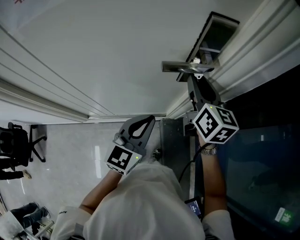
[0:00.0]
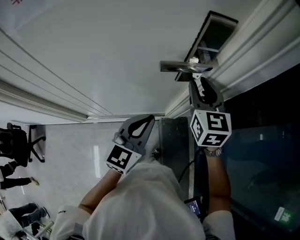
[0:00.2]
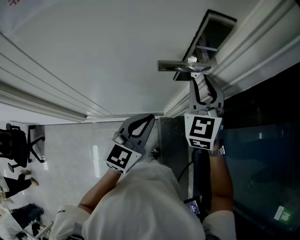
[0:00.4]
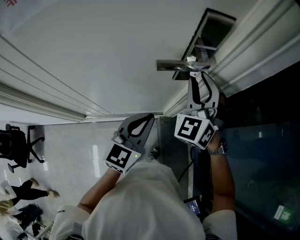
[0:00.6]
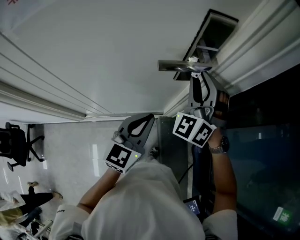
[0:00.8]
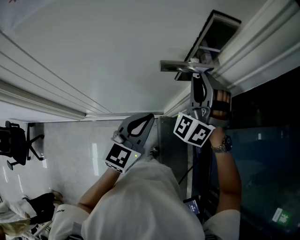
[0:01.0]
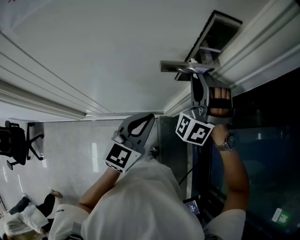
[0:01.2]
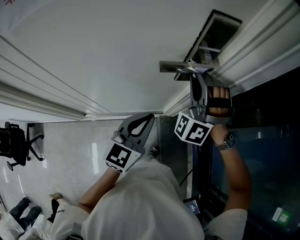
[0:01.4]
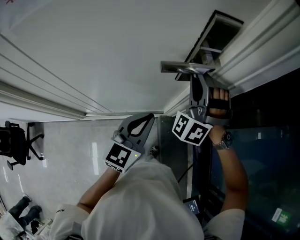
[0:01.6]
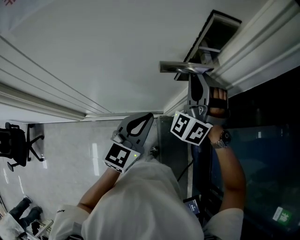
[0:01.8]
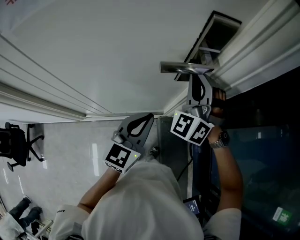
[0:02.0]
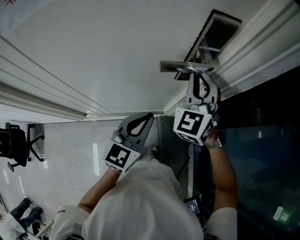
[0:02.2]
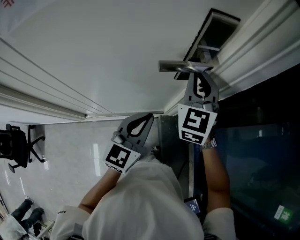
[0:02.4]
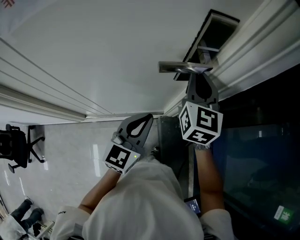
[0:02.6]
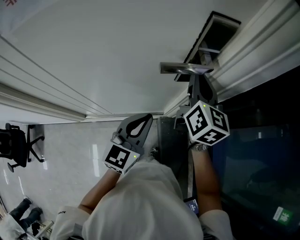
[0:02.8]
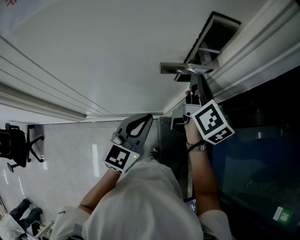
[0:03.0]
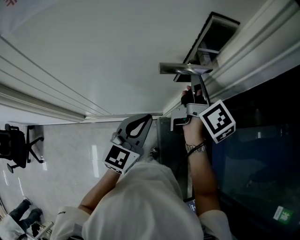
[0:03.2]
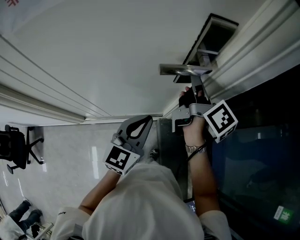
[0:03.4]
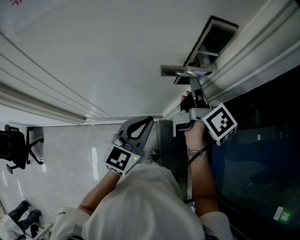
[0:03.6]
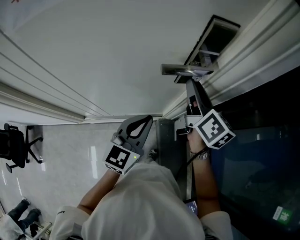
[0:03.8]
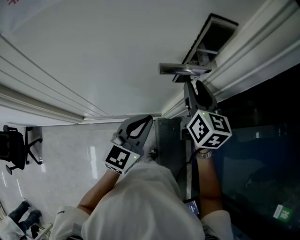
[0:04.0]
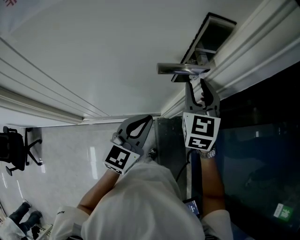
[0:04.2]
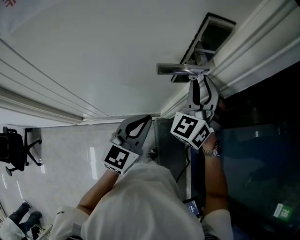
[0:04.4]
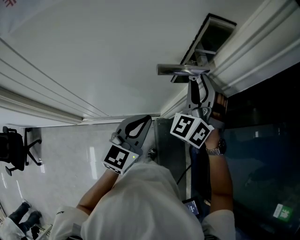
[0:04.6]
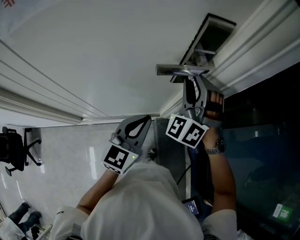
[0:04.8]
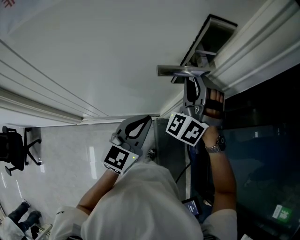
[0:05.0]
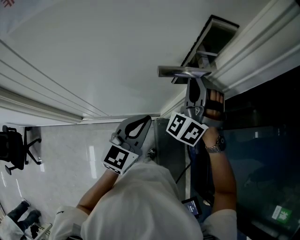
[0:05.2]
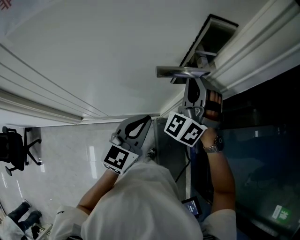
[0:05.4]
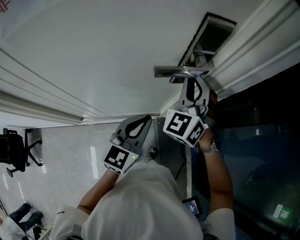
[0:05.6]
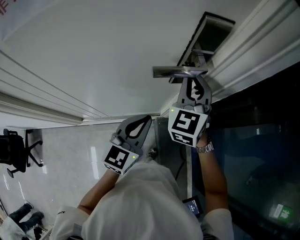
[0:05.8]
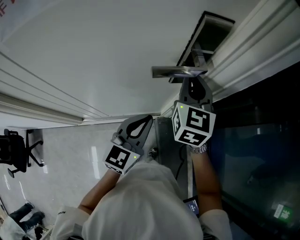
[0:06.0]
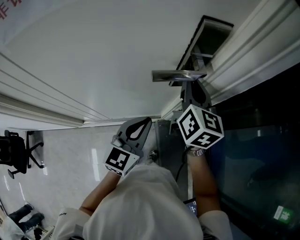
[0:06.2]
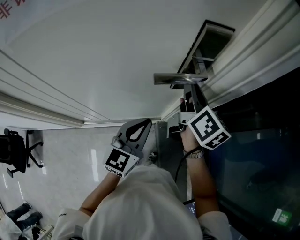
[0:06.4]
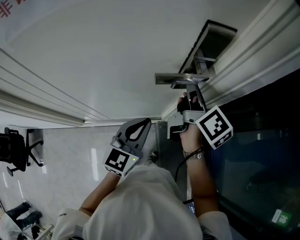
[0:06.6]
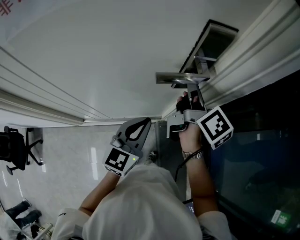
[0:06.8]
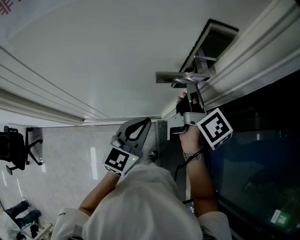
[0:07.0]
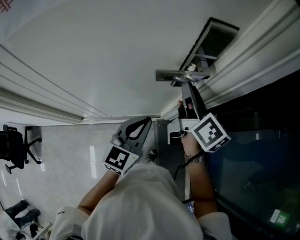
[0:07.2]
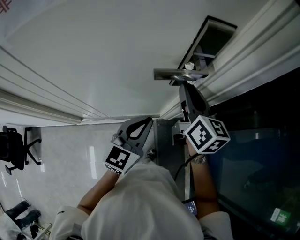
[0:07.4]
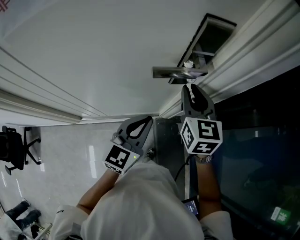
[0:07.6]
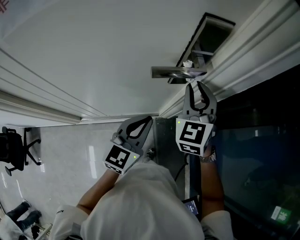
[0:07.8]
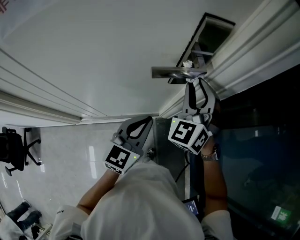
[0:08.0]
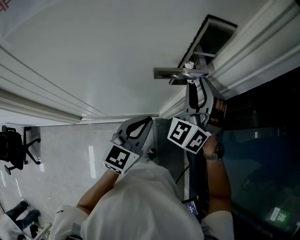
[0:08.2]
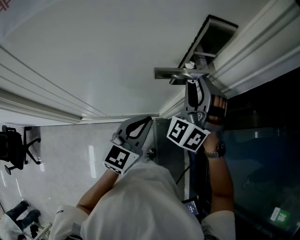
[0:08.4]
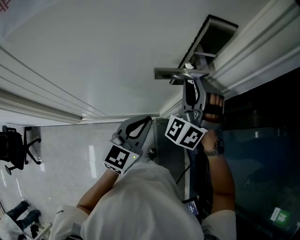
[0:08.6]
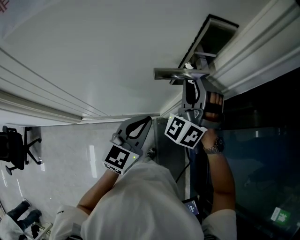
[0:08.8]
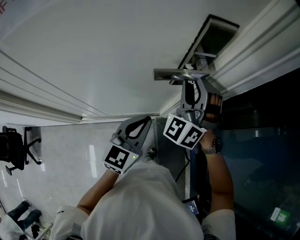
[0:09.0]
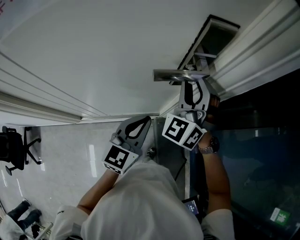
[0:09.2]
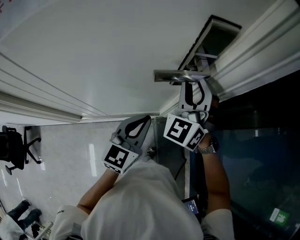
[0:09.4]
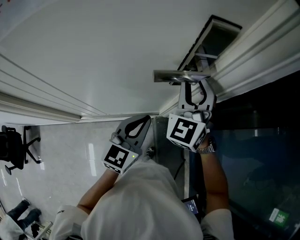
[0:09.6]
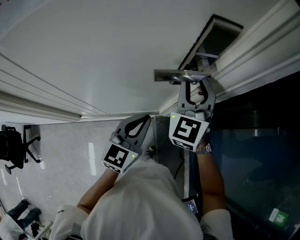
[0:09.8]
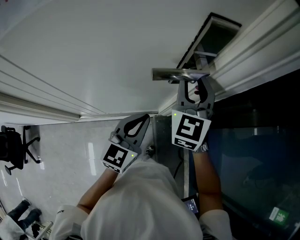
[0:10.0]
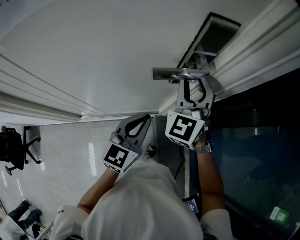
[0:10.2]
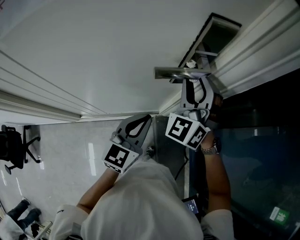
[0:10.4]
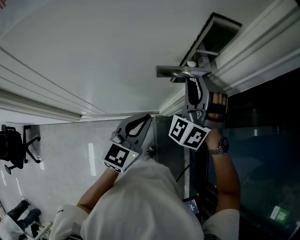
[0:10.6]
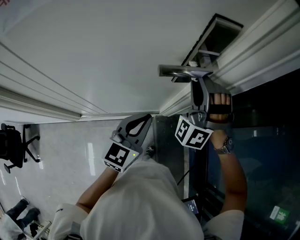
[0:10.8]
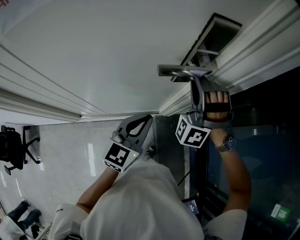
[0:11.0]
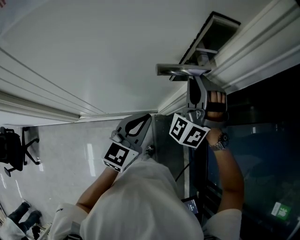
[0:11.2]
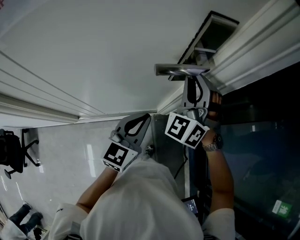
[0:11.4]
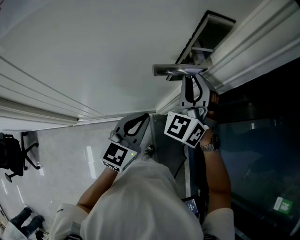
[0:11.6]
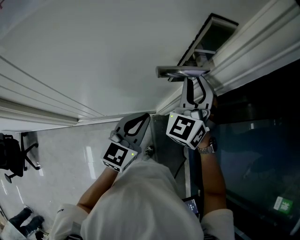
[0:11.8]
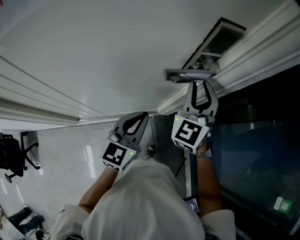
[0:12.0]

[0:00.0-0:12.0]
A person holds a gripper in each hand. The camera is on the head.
0:00.0 to 0:01.6: The right gripper rotates around the line of its fingers by approximately 100 degrees, counterclockwise from behind.
0:01.6 to 0:03.0: The right gripper twists roughly 120 degrees clockwise, seen from behind.
0:03.0 to 0:04.4: The right gripper twists roughly 90 degrees counterclockwise, seen from behind, and opens.
0:04.4 to 0:06.0: The right gripper rotates around the line of its fingers by some 50 degrees, clockwise from behind, and closes up.
0:07.6 to 0:09.0: The right gripper rolls counterclockwise, seen from behind, by roughly 60 degrees.
0:10.4 to 0:12.0: The right gripper changes its angle by roughly 20 degrees.

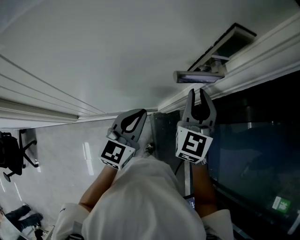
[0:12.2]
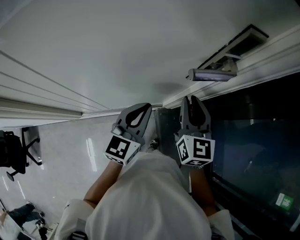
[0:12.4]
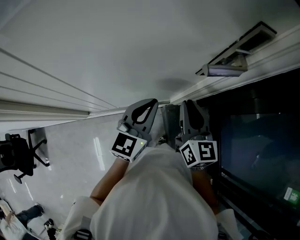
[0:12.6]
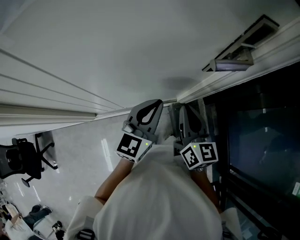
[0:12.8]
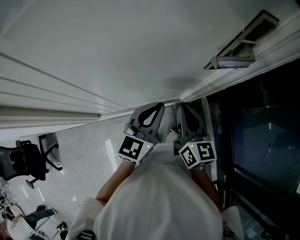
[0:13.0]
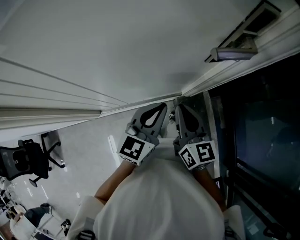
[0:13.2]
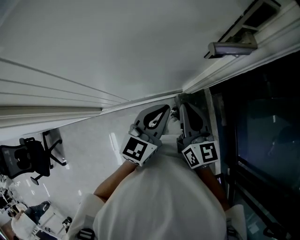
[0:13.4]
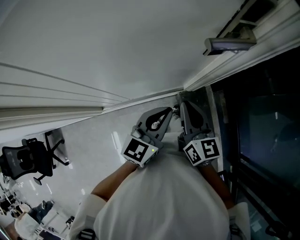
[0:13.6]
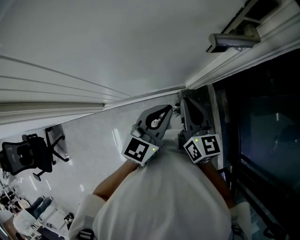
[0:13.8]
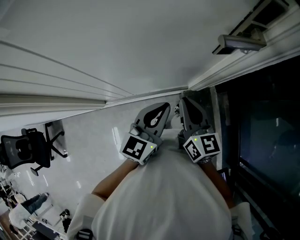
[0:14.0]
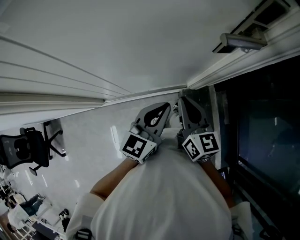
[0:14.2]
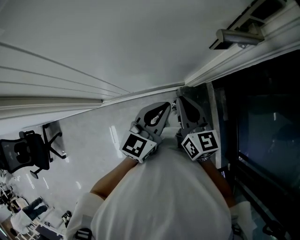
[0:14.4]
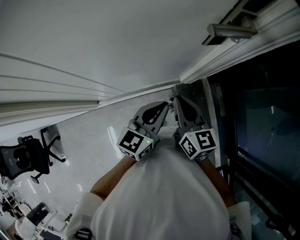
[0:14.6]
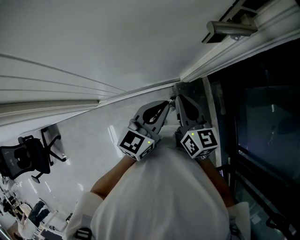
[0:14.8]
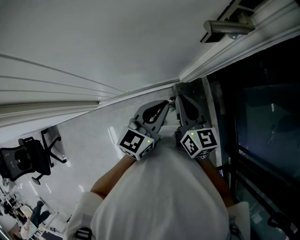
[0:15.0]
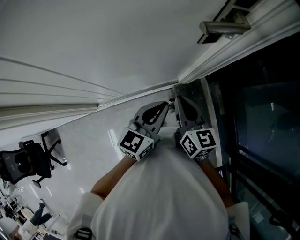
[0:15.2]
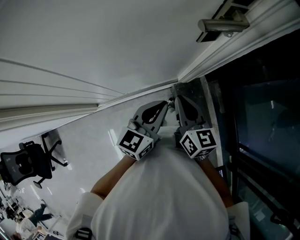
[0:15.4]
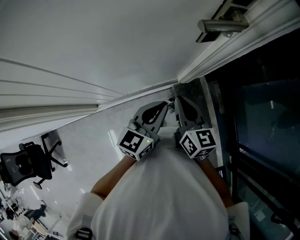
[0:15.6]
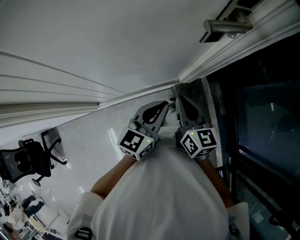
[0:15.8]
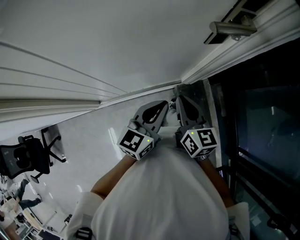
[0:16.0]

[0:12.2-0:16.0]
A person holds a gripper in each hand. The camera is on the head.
0:12.2 to 0:13.4: The right gripper is displaced backward, downward and to the left by approximately 20 cm, and rotates approximately 40 degrees. Meanwhile the left gripper moves about 5 cm.
0:13.4 to 0:14.8: There are only small adjustments of the grippers.
0:14.8 to 0:16.0: Neither gripper changes place.

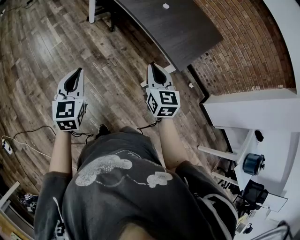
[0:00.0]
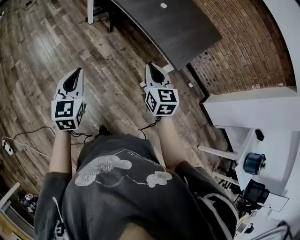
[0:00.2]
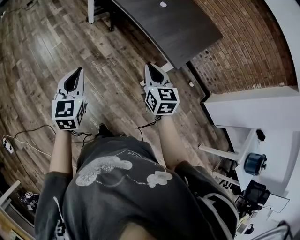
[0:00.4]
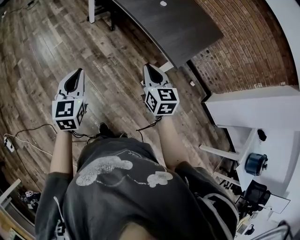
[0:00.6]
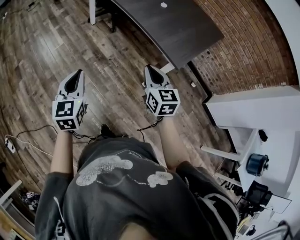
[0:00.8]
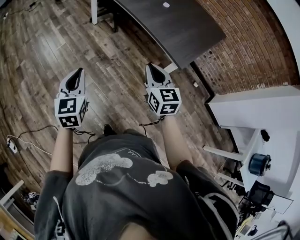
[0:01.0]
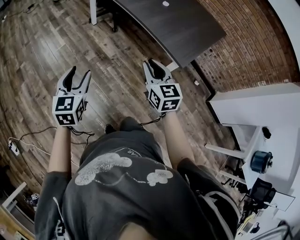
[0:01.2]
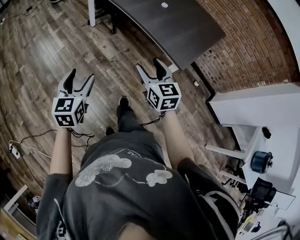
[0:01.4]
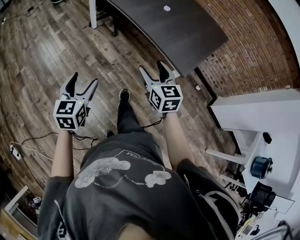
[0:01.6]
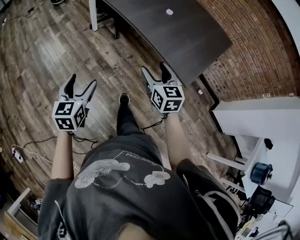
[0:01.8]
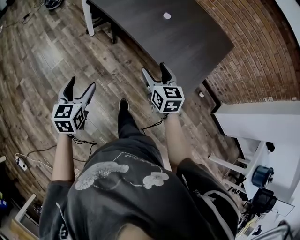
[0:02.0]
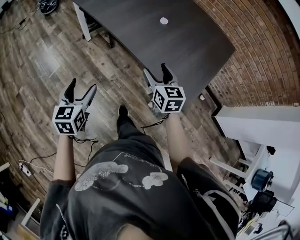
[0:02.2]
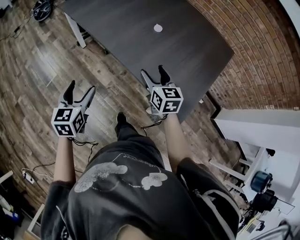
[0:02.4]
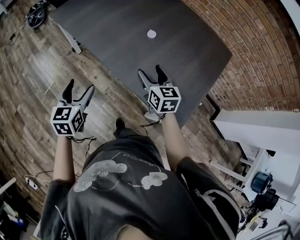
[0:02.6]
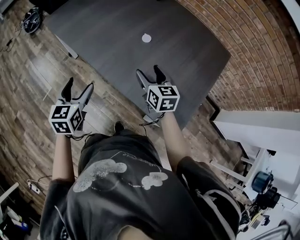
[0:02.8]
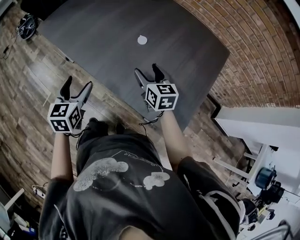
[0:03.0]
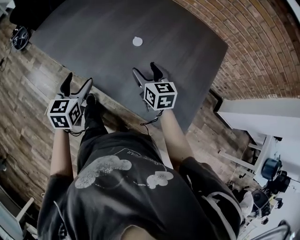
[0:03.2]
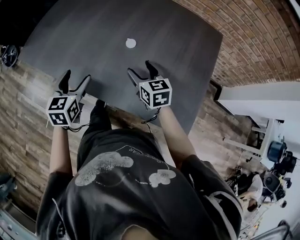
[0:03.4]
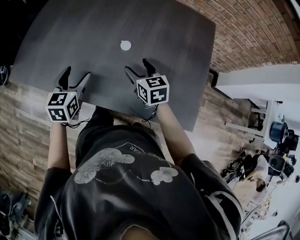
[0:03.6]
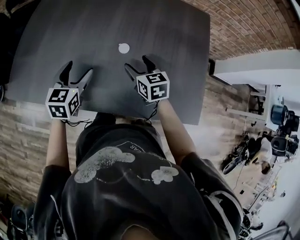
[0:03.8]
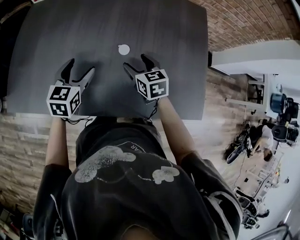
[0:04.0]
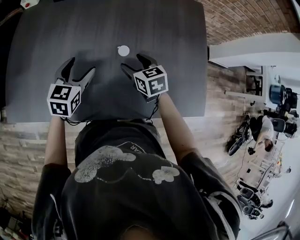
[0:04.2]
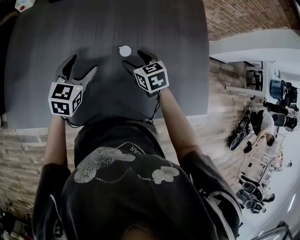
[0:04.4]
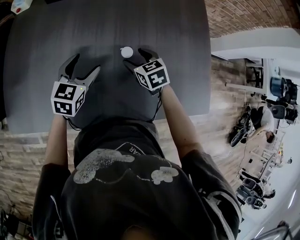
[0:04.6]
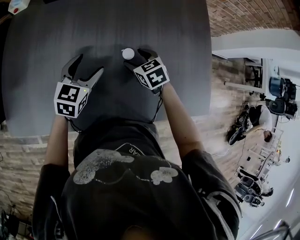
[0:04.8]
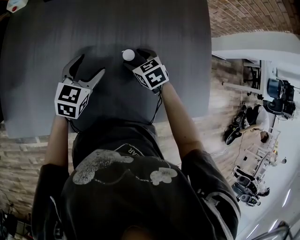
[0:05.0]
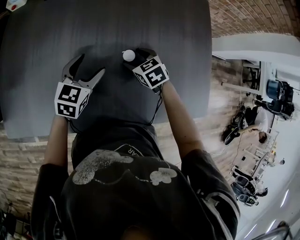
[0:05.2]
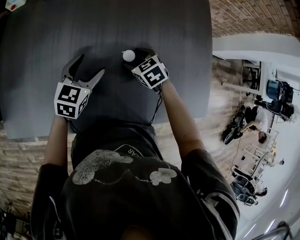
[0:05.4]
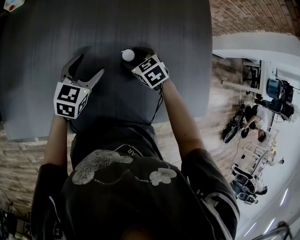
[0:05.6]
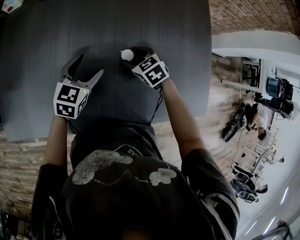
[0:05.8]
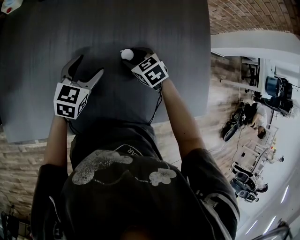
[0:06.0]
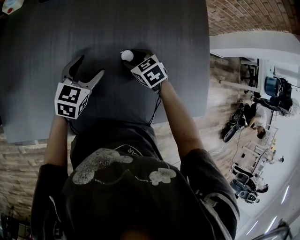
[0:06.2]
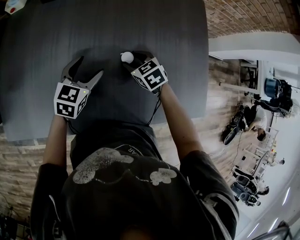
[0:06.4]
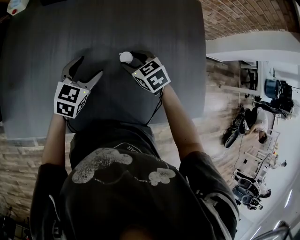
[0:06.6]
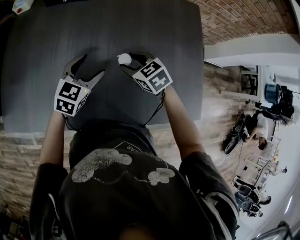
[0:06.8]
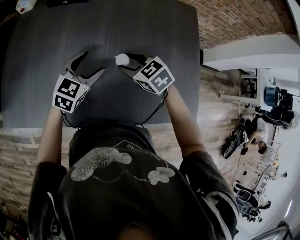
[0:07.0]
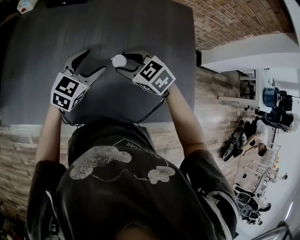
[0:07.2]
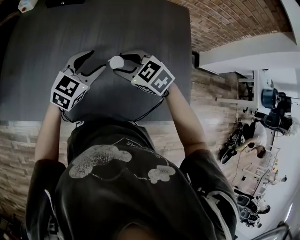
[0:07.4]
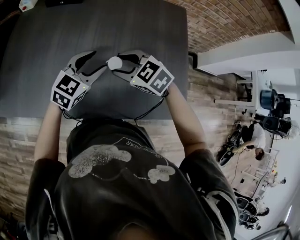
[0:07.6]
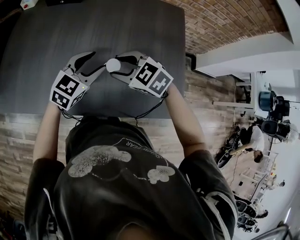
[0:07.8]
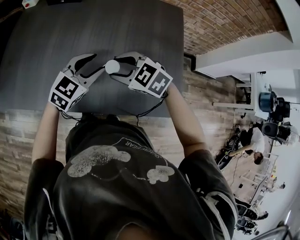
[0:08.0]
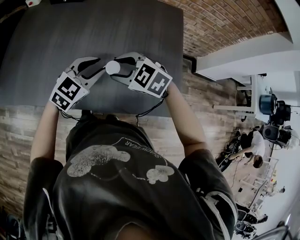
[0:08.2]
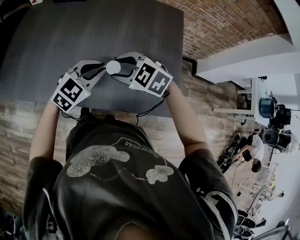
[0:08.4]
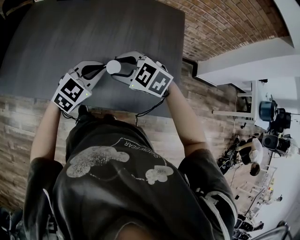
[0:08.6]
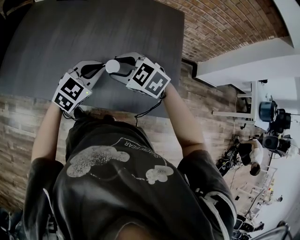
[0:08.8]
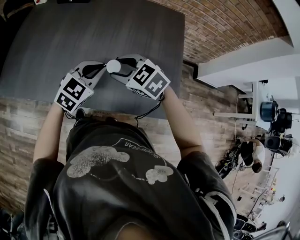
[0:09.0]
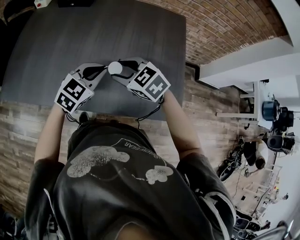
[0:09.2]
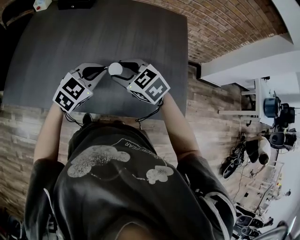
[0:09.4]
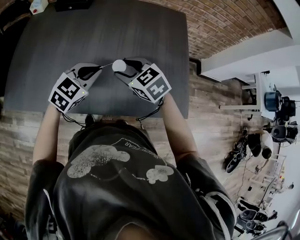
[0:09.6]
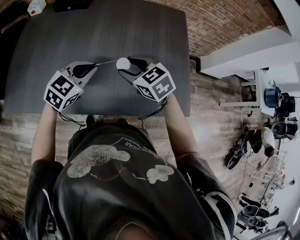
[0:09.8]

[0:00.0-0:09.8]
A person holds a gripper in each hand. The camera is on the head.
0:00.0 to 0:01.4: The left gripper opens its fingers. Meanwhile the right gripper opens up.
0:01.4 to 0:02.8: The pair of grippers is taken forward, approximately 50 cm.
0:02.8 to 0:04.2: The left gripper ends up about 35 cm from where it was, and turns by approximately 50 degrees, while the right gripper ends up roughly 20 cm from where it was, and swivels about 30 degrees.
0:04.2 to 0:05.6: The left gripper shifts some 5 cm forward, while the right gripper heads downward and forward, covering about 10 cm, and changes its angle by about 20 degrees.
0:05.6 to 0:07.0: The left gripper moves to the right and upward, approximately 10 cm; the right gripper heads upward, covering roughly 10 cm.
0:07.0 to 0:08.4: The left gripper moves backward and to the right, about 20 cm, and closes; the right gripper is displaced backward and upward by roughly 15 cm, and swivels some 30 degrees.
0:08.4 to 0:09.8: The left gripper goes approximately 10 cm to the left. The right gripper shifts some 5 cm forward, and changes its angle by some 30 degrees.